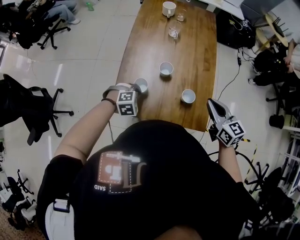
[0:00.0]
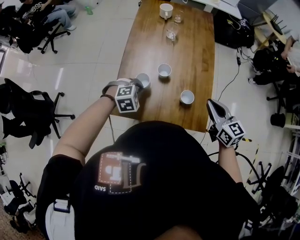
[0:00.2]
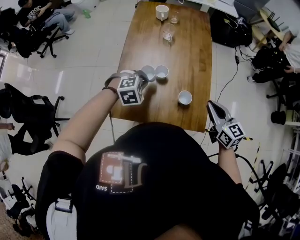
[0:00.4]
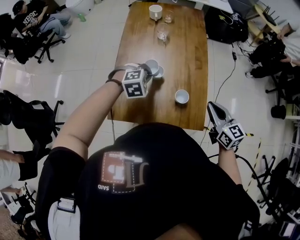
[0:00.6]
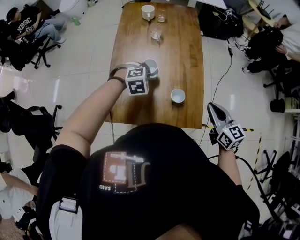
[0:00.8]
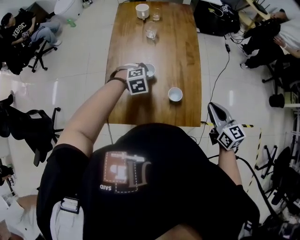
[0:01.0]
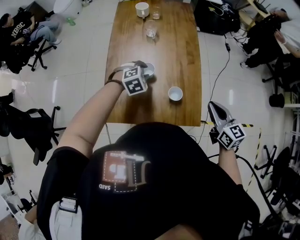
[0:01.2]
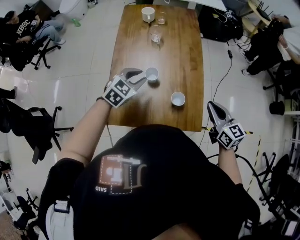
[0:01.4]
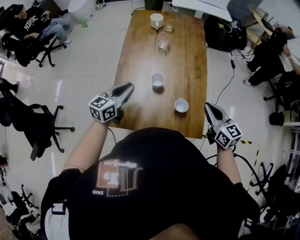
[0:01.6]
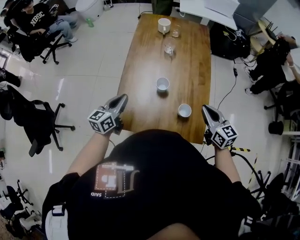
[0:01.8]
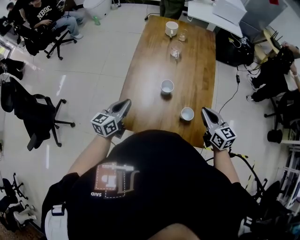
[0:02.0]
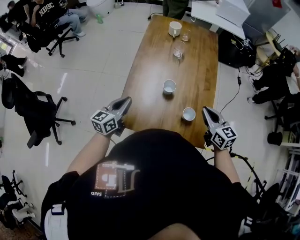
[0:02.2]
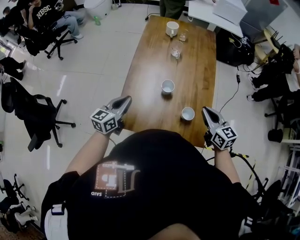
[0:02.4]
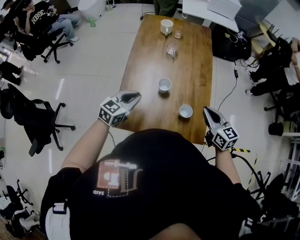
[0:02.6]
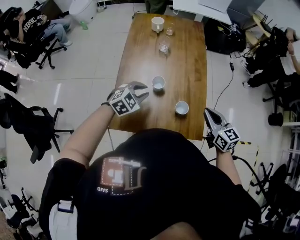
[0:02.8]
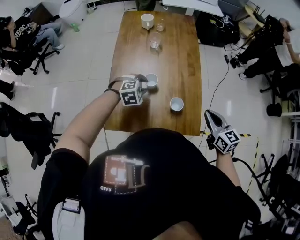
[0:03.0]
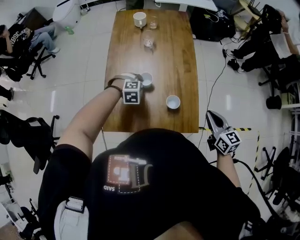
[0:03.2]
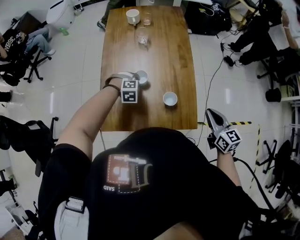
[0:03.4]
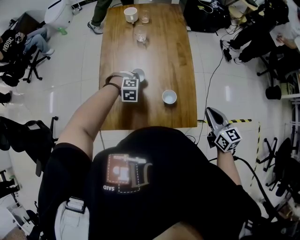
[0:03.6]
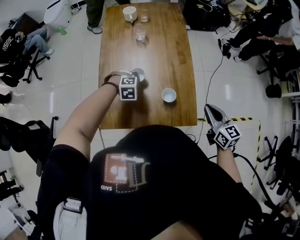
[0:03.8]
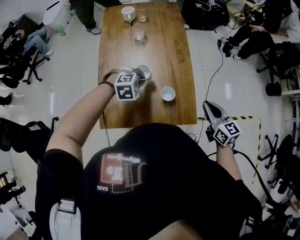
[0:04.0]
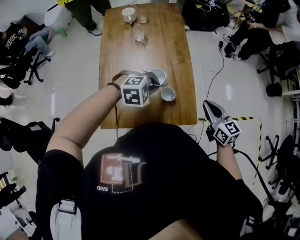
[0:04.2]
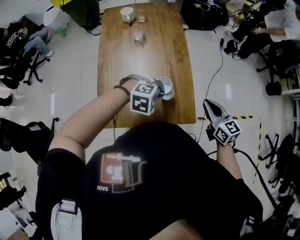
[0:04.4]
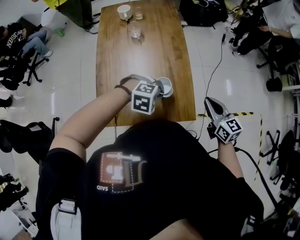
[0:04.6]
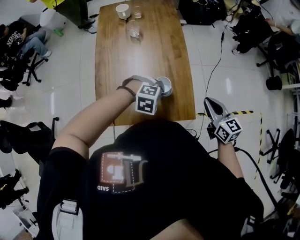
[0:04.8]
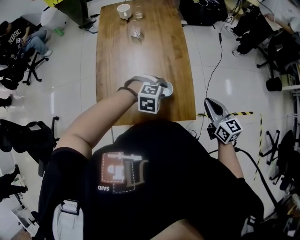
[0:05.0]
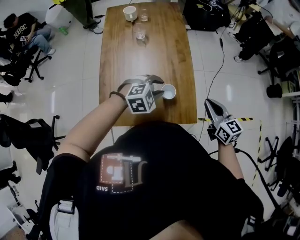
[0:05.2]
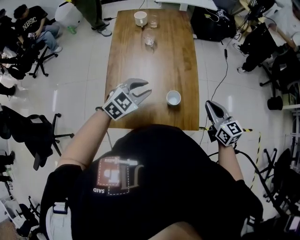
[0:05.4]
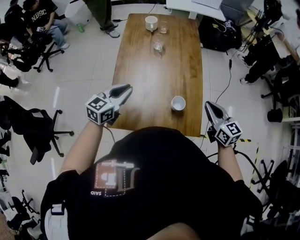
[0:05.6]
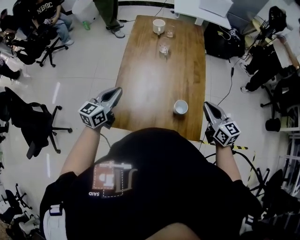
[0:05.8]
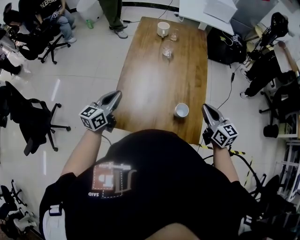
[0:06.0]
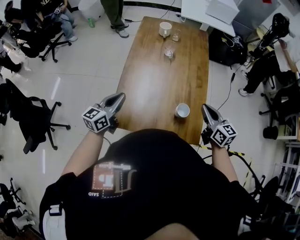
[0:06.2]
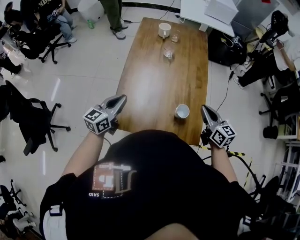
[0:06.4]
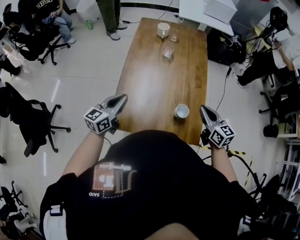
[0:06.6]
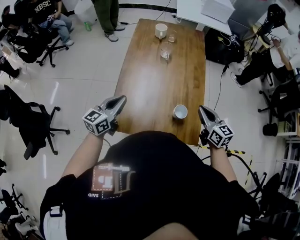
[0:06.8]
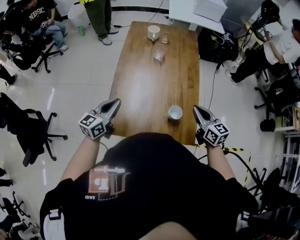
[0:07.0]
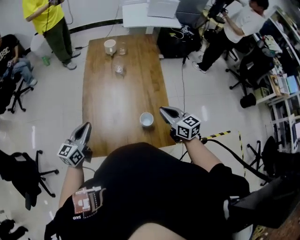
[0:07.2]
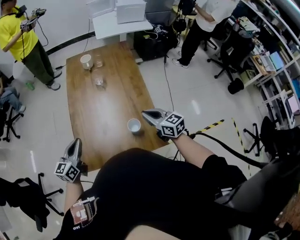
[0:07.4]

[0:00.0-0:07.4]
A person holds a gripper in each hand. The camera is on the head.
0:00.0 to 0:01.4: The left gripper heads upward, forward and to the right, covering approximately 20 cm, changes its angle by approximately 40 degrees, and opens its fingers. Meanwhile the right gripper travels to the right by about 5 cm.
0:01.4 to 0:03.0: The right gripper goes to the left and returns, roughly 10 cm each way. The left gripper is displaced downward by roughly 10 cm, travels to the left and back again, approximately 15 cm each way, turns by roughly 40 degrees, and closes and opens again.
0:03.0 to 0:04.4: The left gripper moves to the right and backward, roughly 15 cm, turns by roughly 30 degrees, and closes up.
0:04.4 to 0:06.0: The left gripper shifts by some 30 cm, points its fingers roughly 50 degrees further upward, and opens, then closes once more. The right gripper moves about 10 cm.
0:06.0 to 0:07.4: There are only small adjustments of the grippers.

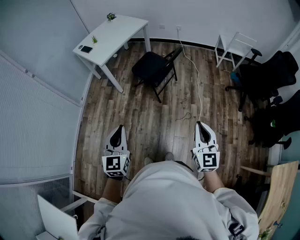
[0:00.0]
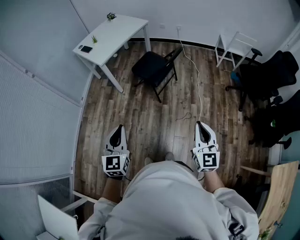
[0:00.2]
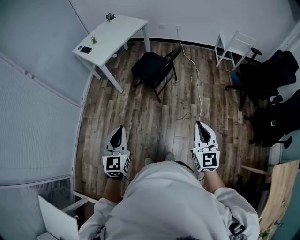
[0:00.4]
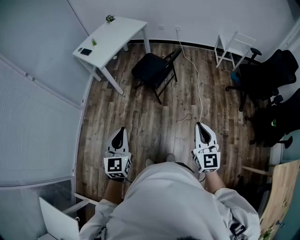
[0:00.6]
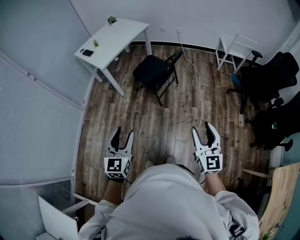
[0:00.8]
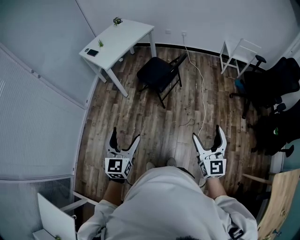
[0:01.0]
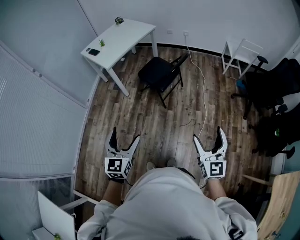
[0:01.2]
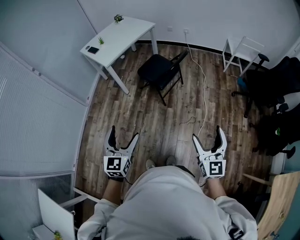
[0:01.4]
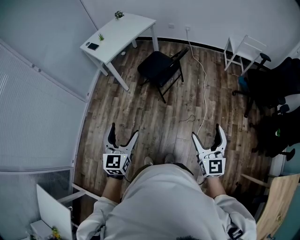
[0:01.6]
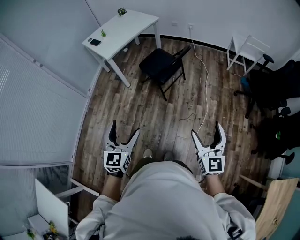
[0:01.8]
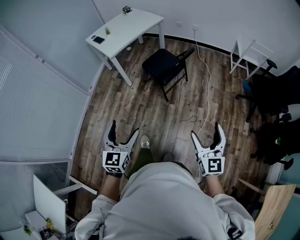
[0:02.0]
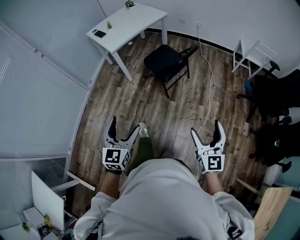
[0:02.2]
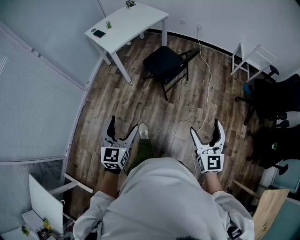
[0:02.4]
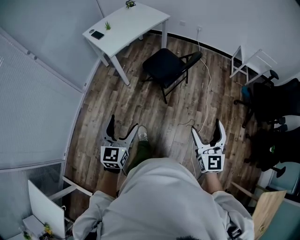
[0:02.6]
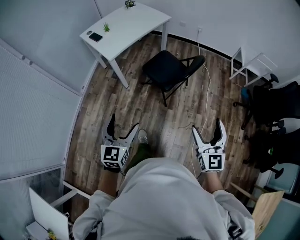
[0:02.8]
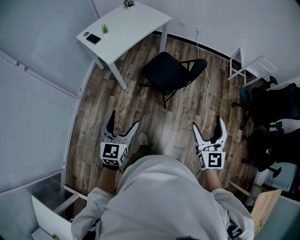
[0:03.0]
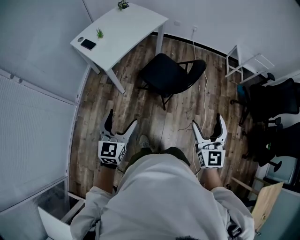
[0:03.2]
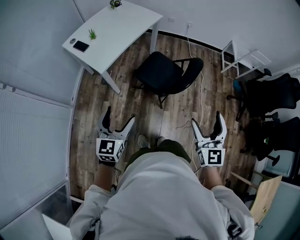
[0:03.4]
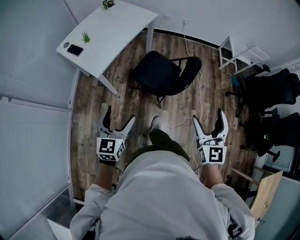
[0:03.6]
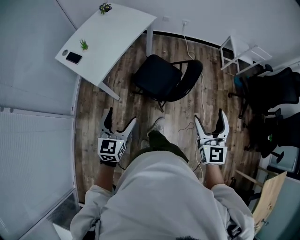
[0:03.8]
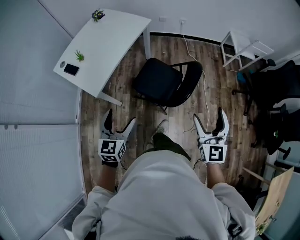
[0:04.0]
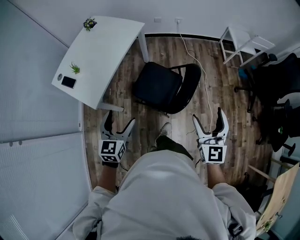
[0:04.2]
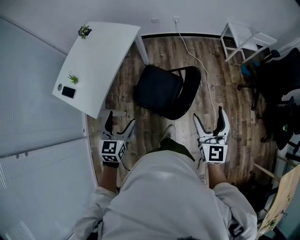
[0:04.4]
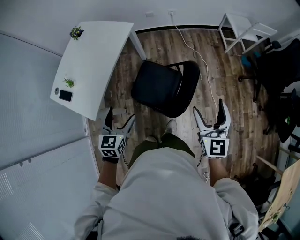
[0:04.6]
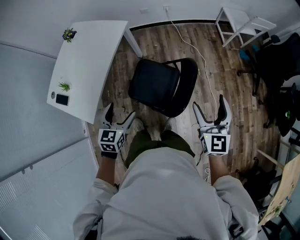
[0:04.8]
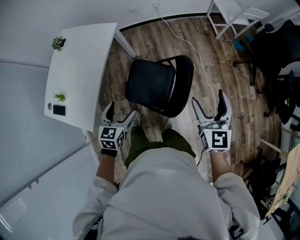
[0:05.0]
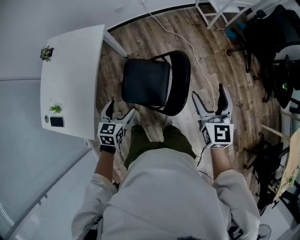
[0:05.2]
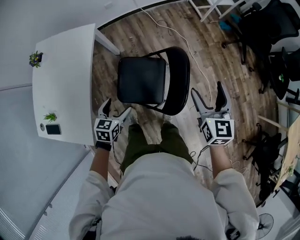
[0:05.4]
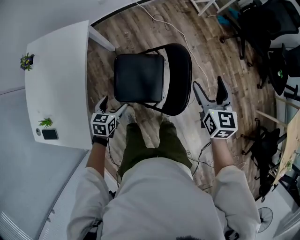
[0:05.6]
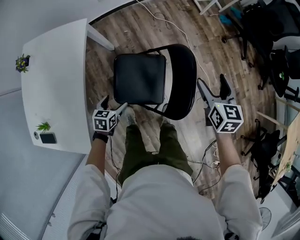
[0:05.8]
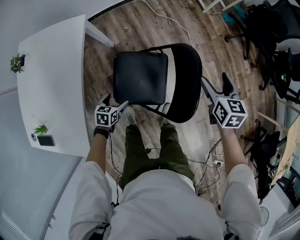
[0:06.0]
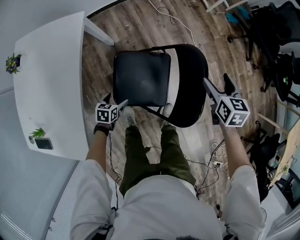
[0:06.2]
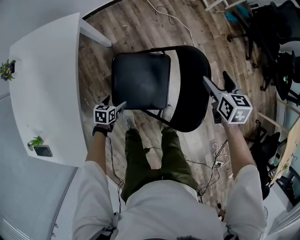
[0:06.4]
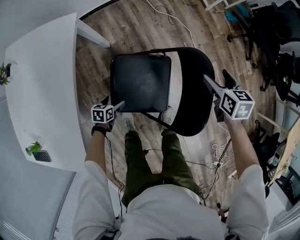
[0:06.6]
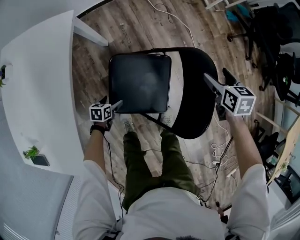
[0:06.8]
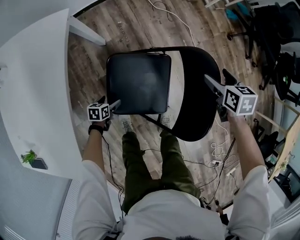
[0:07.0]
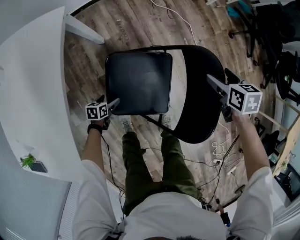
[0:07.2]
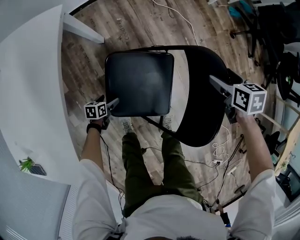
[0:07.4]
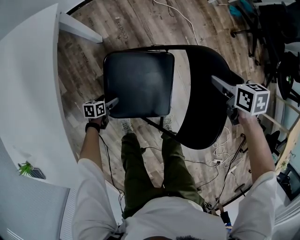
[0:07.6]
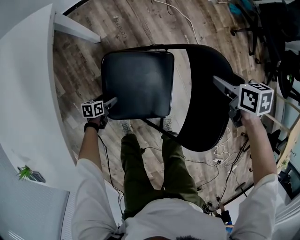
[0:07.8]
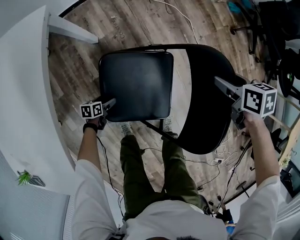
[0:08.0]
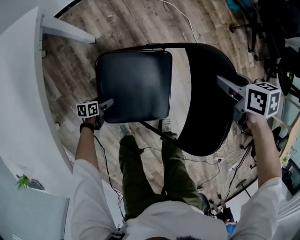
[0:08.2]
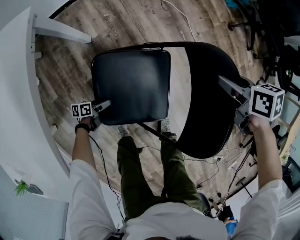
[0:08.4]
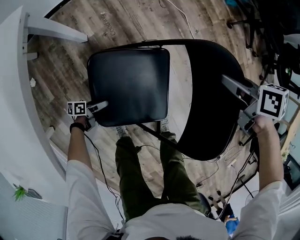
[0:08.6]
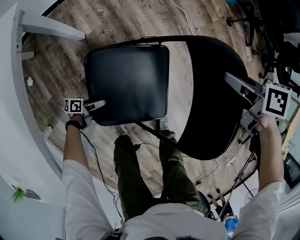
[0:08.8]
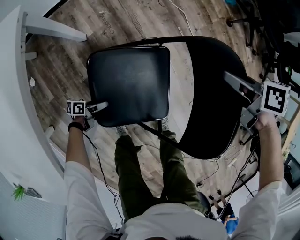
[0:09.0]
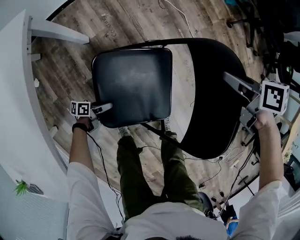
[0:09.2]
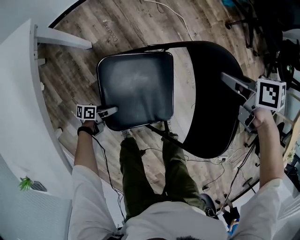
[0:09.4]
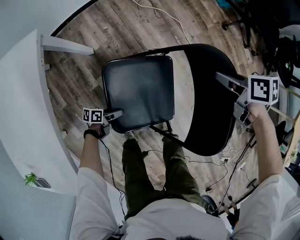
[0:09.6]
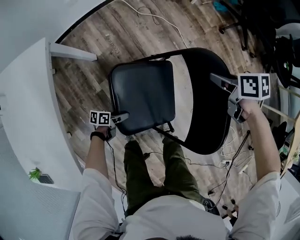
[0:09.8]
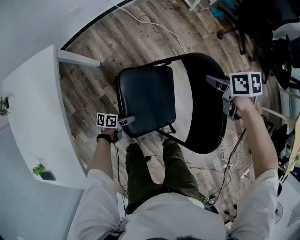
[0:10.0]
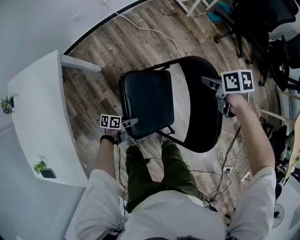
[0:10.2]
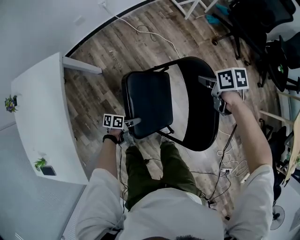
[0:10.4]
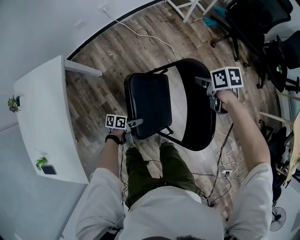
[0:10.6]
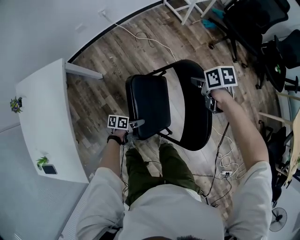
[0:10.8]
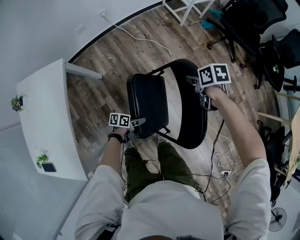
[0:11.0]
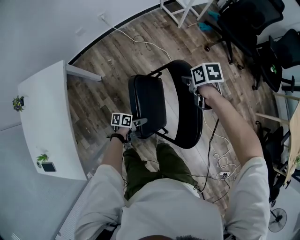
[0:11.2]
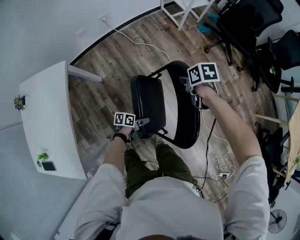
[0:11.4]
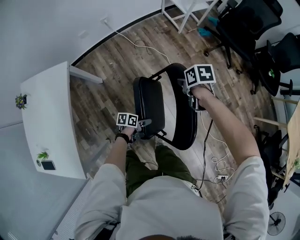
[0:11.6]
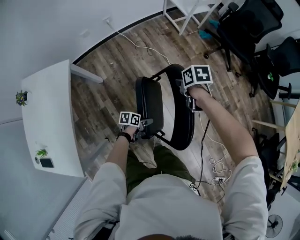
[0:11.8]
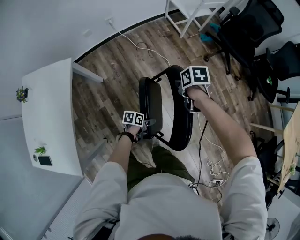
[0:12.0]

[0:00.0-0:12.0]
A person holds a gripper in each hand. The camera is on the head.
0:00.0 to 0:01.6: Both grippers travel together to the right, about 5 cm. The left gripper opens its fingers; the right gripper opens.
0:01.6 to 0:03.0: Both grippers move forward and to the left, approximately 30 cm.
0:03.0 to 0:04.4: The two grippers go approximately 35 cm forward.
0:04.4 to 0:06.0: The left gripper moves downward, approximately 40 cm, and points its fingers roughly 30 degrees further downward. Meanwhile the right gripper moves downward, approximately 20 cm, and points its fingers approximately 30 degrees further downward.
0:06.0 to 0:07.6: Both grippers move downward, approximately 25 cm. The right gripper changes its angle by approximately 30 degrees; the left gripper rotates about 20 degrees.
0:07.6 to 0:09.0: The left gripper moves approximately 5 cm, and angles its fingers upward, by about 30 degrees. The right gripper rotates roughly 20 degrees, and closes.
0:09.0 to 0:10.4: The right gripper ends up some 20 cm from where it was; the left gripper goes about 25 cm upward.
0:10.4 to 0:12.0: The right gripper goes some 5 cm upward. Meanwhile the left gripper changes place by approximately 15 cm.

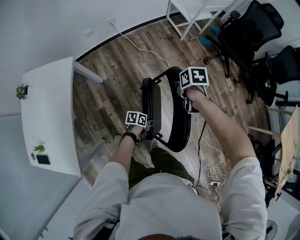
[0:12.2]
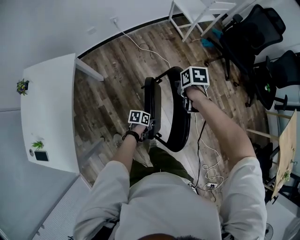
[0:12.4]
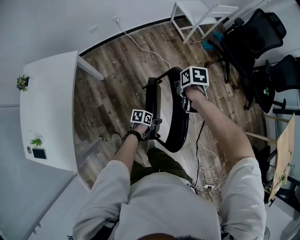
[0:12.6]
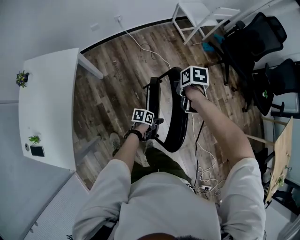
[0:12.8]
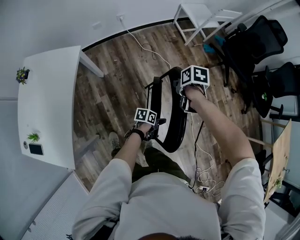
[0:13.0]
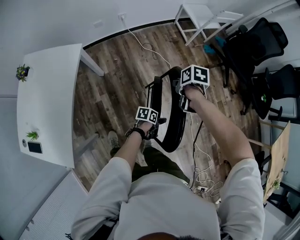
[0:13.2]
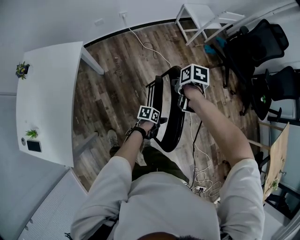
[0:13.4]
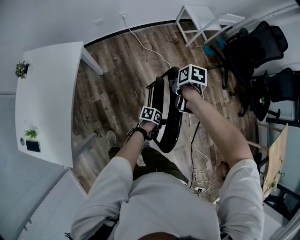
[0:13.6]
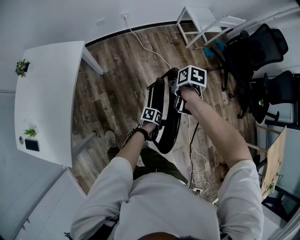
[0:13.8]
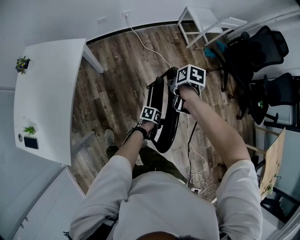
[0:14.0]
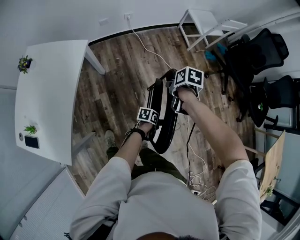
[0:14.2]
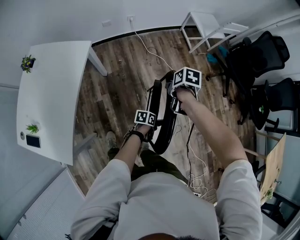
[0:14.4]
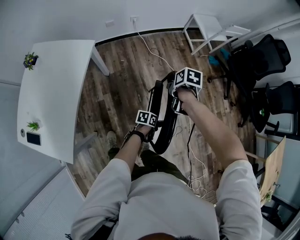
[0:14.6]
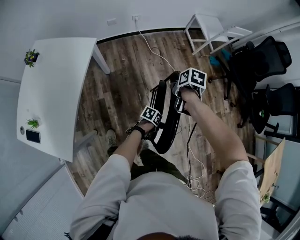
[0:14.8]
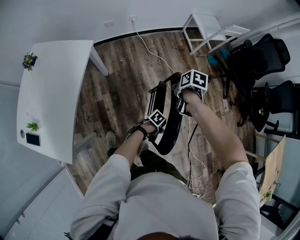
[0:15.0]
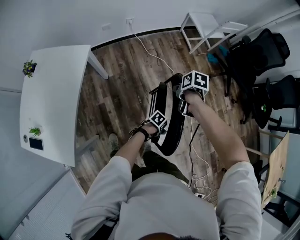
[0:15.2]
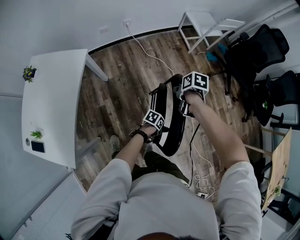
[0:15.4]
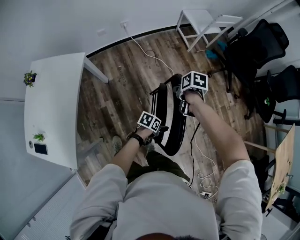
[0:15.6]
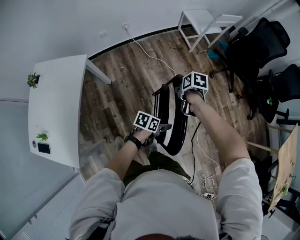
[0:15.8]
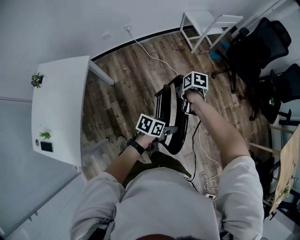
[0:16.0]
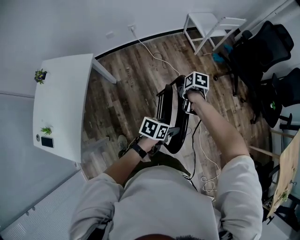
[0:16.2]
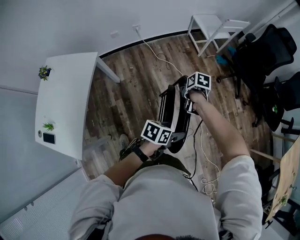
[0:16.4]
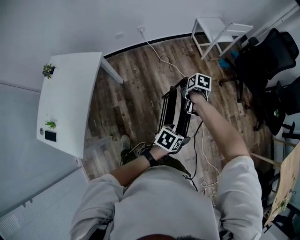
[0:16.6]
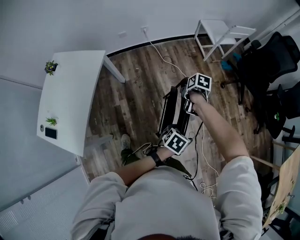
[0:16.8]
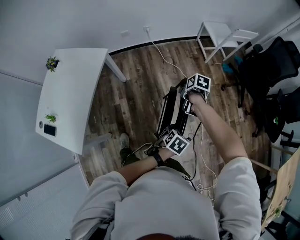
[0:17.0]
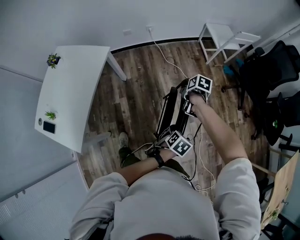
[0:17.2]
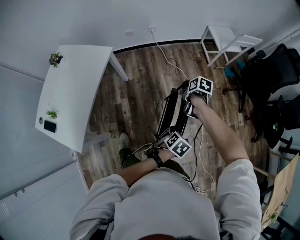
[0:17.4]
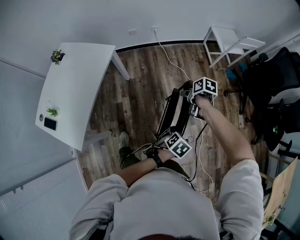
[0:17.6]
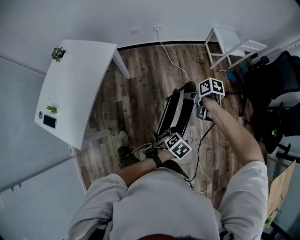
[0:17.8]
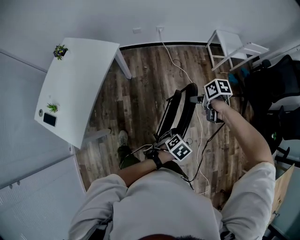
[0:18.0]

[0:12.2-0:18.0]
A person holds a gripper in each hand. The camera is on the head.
0:12.2 to 0:13.6: The right gripper changes place by some 10 cm.
0:13.6 to 0:15.0: The left gripper rotates about 30 degrees.
0:15.0 to 0:16.6: The right gripper shifts by some 10 cm; the left gripper is displaced upward by about 25 cm, and turns by some 30 degrees.
0:16.6 to 0:18.0: The left gripper moves some 5 cm, and changes its angle by some 20 degrees. The right gripper heads upward, covering roughly 5 cm, and turns by approximately 30 degrees.
